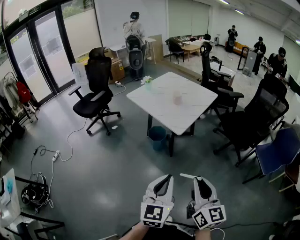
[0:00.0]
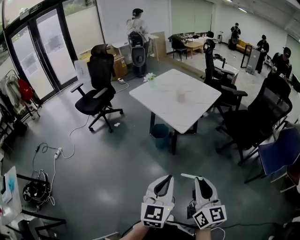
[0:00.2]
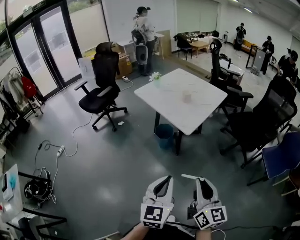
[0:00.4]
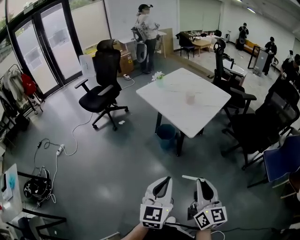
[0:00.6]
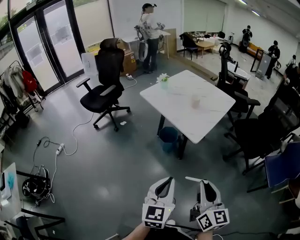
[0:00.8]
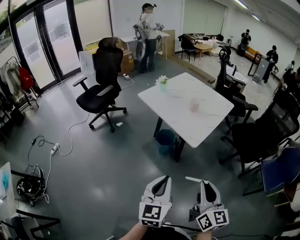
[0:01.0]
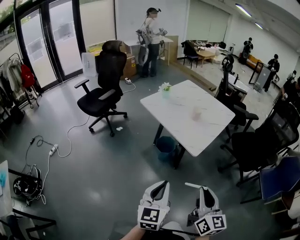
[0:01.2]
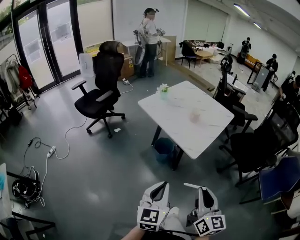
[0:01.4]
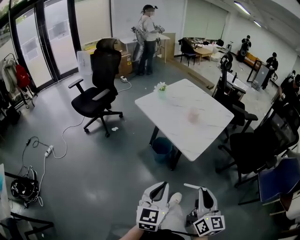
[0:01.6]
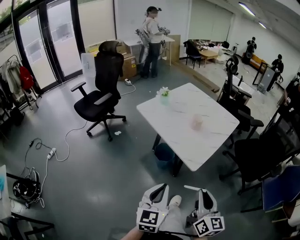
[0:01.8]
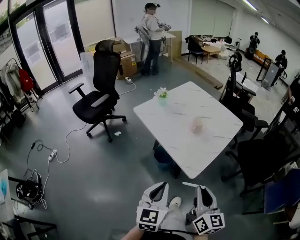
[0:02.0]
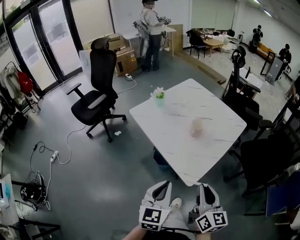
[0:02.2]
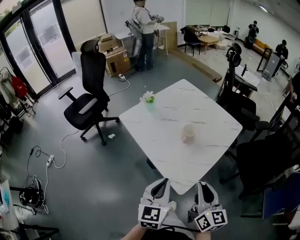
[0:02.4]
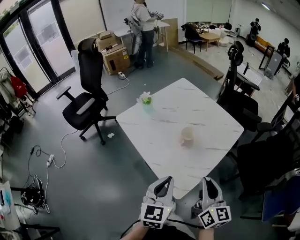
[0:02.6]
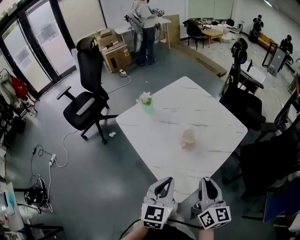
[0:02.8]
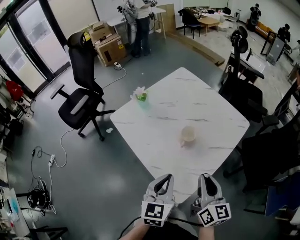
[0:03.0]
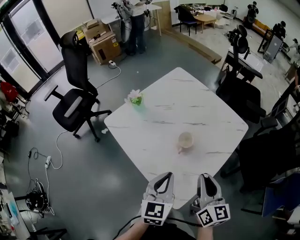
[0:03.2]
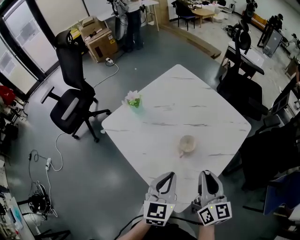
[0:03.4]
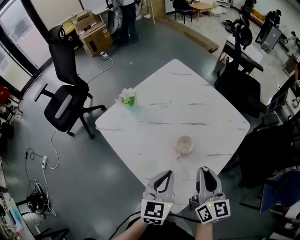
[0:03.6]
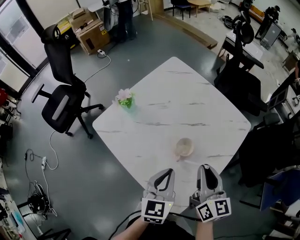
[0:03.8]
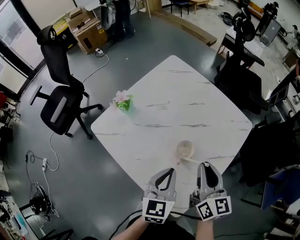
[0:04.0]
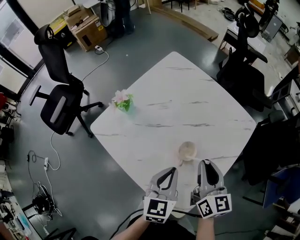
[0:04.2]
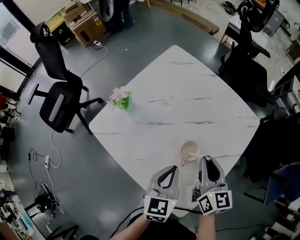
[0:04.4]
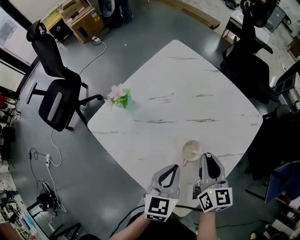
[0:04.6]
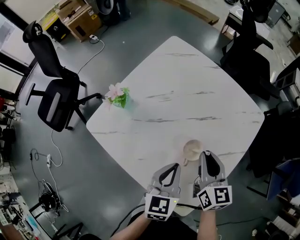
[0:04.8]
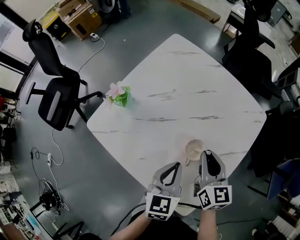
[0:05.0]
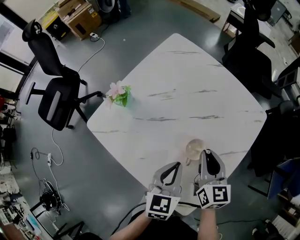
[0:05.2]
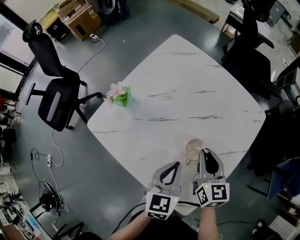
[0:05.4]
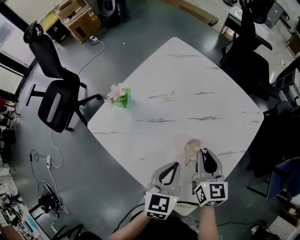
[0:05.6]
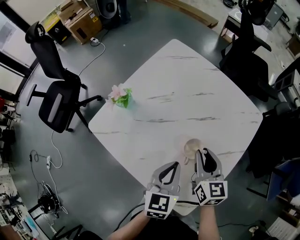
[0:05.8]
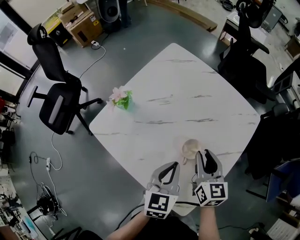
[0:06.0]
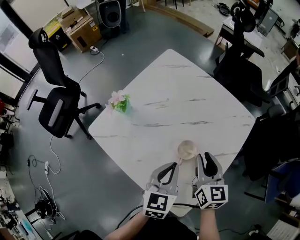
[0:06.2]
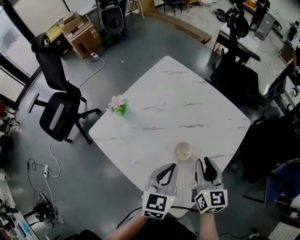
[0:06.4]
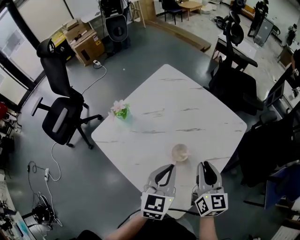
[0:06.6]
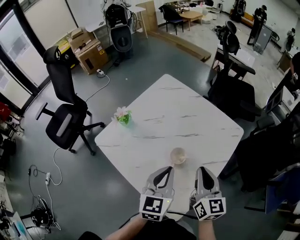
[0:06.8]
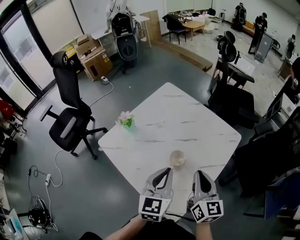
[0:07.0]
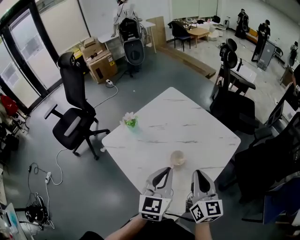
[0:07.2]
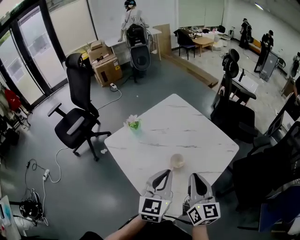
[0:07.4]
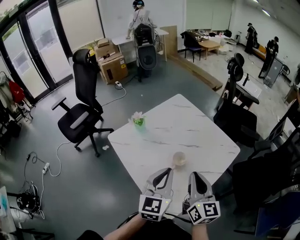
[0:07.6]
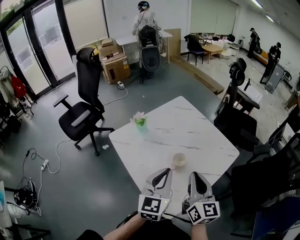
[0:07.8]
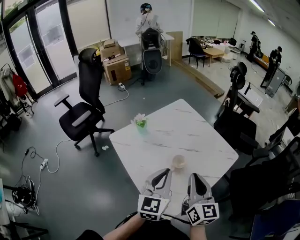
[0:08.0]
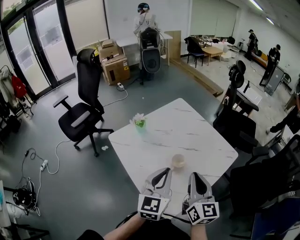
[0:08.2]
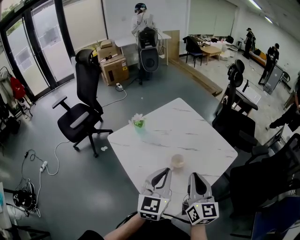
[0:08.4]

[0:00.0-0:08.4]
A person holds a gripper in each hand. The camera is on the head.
0:00.0 to 0:01.4: The two grippers go roughly 20 cm forward and to the left.
0:01.4 to 0:02.8: Both grippers move forward, approximately 40 cm.
0:02.8 to 0:04.2: The left gripper is displaced forward and downward by some 20 cm; the right gripper goes some 20 cm forward.
0:04.2 to 0:05.6: The right gripper shifts roughly 10 cm downward.
0:05.6 to 0:07.0: The left gripper heads upward, covering about 15 cm; the right gripper moves upward, backward and to the right, roughly 15 cm.
0:07.0 to 0:08.4: The two grippers go roughly 5 cm upward.

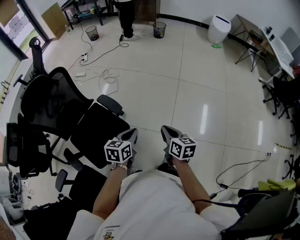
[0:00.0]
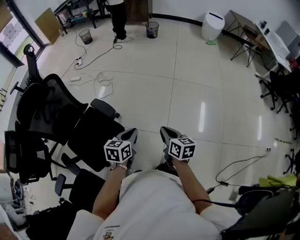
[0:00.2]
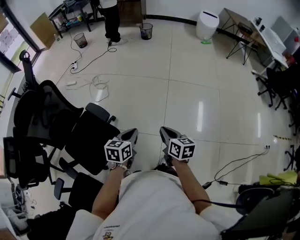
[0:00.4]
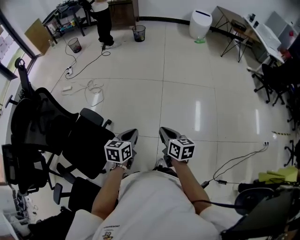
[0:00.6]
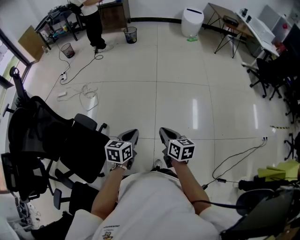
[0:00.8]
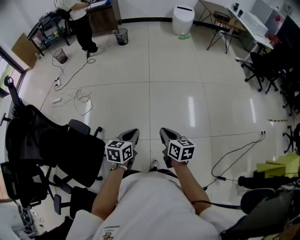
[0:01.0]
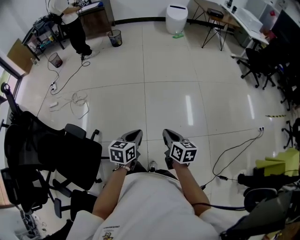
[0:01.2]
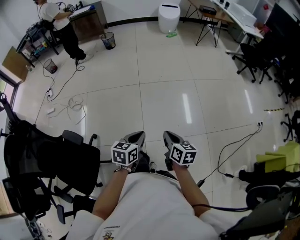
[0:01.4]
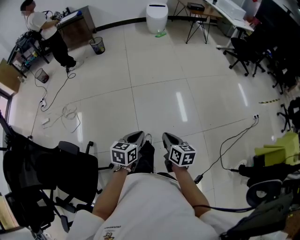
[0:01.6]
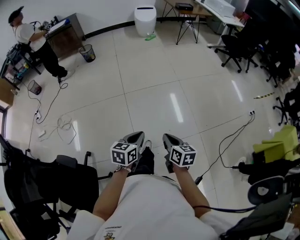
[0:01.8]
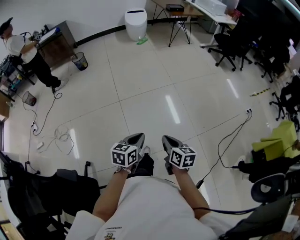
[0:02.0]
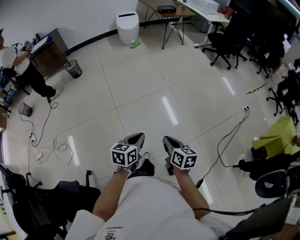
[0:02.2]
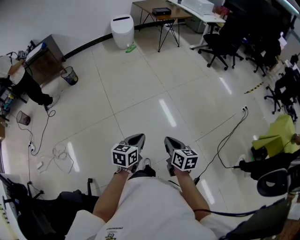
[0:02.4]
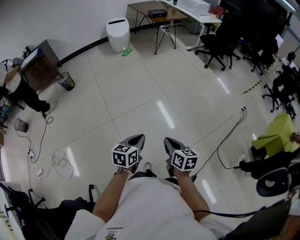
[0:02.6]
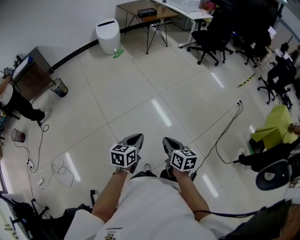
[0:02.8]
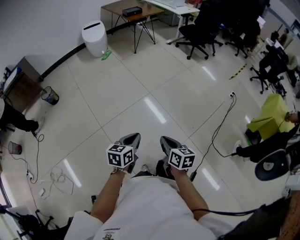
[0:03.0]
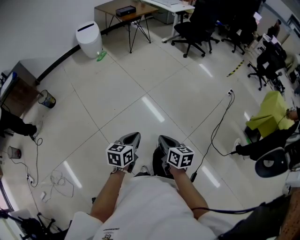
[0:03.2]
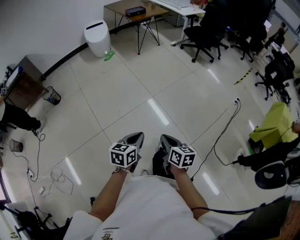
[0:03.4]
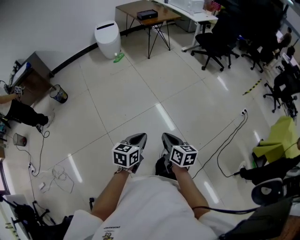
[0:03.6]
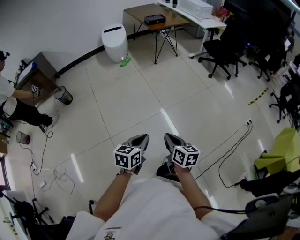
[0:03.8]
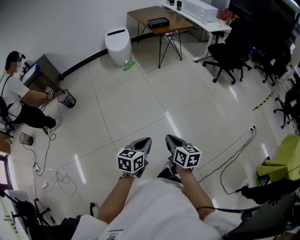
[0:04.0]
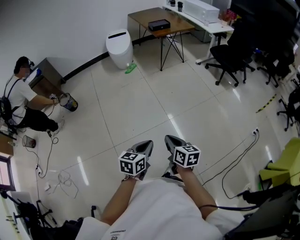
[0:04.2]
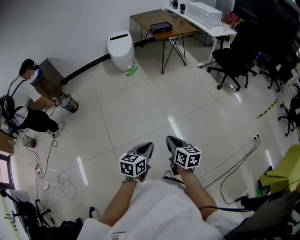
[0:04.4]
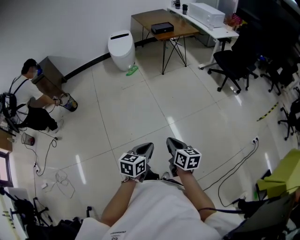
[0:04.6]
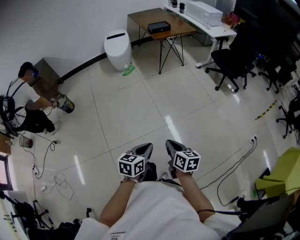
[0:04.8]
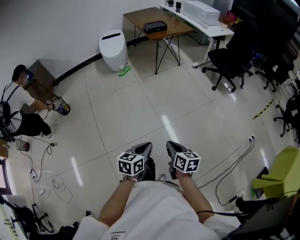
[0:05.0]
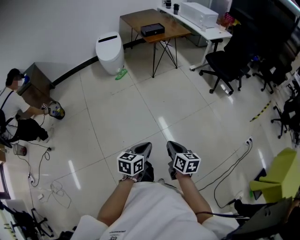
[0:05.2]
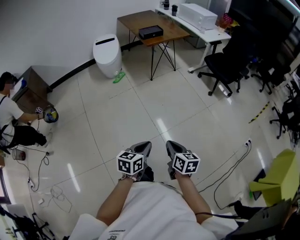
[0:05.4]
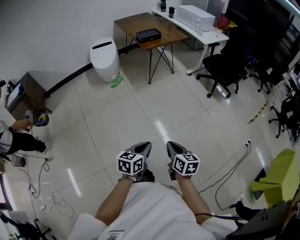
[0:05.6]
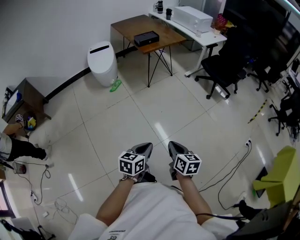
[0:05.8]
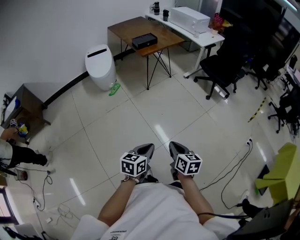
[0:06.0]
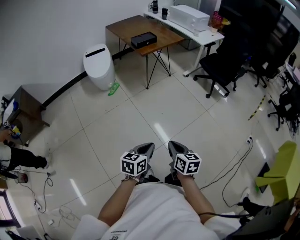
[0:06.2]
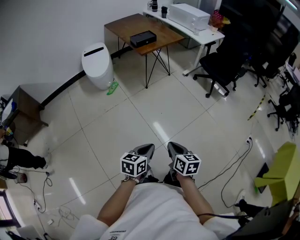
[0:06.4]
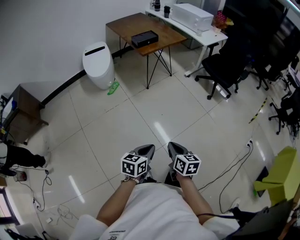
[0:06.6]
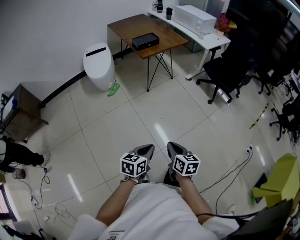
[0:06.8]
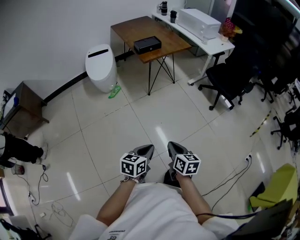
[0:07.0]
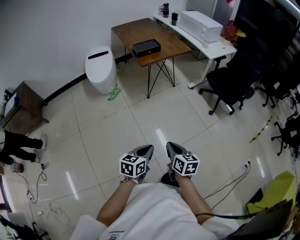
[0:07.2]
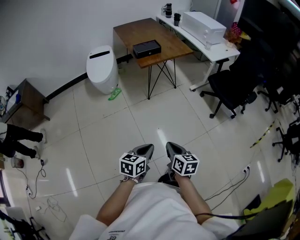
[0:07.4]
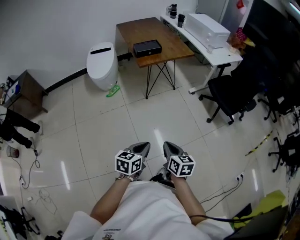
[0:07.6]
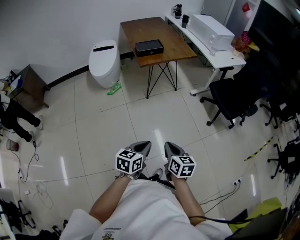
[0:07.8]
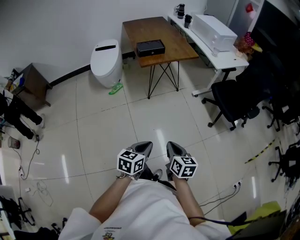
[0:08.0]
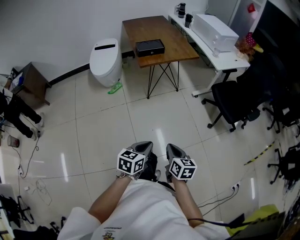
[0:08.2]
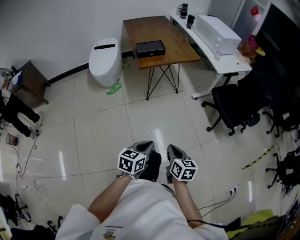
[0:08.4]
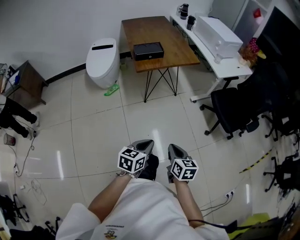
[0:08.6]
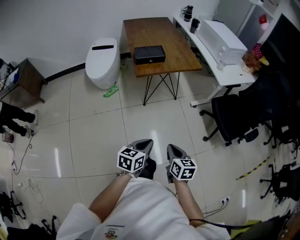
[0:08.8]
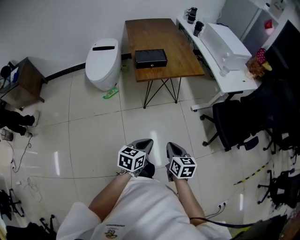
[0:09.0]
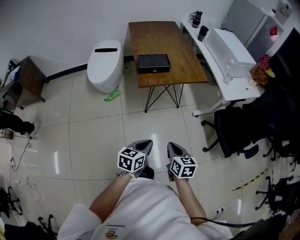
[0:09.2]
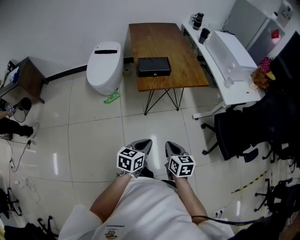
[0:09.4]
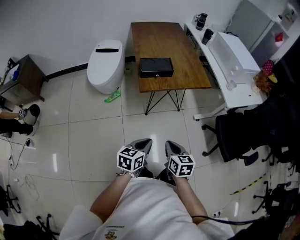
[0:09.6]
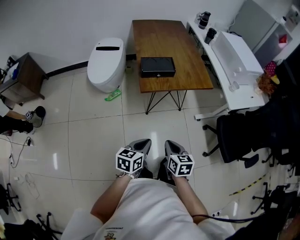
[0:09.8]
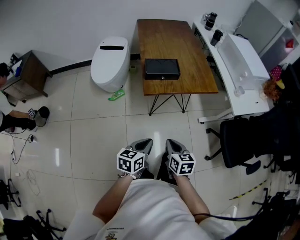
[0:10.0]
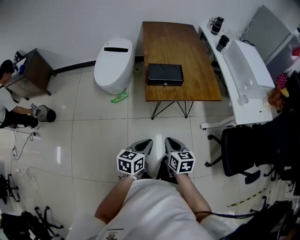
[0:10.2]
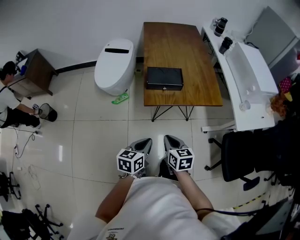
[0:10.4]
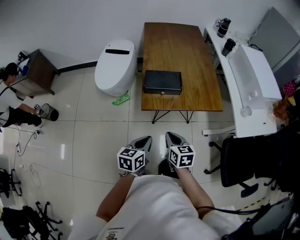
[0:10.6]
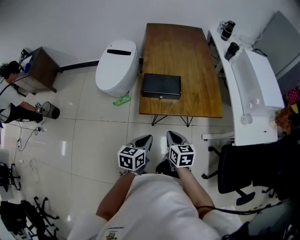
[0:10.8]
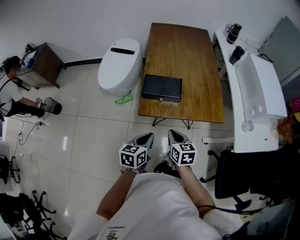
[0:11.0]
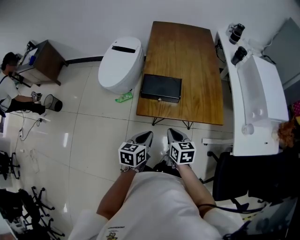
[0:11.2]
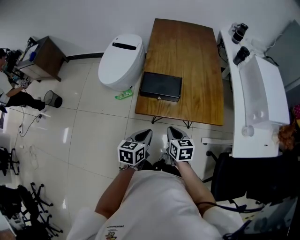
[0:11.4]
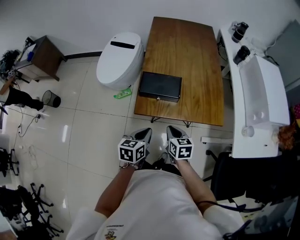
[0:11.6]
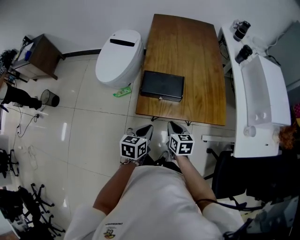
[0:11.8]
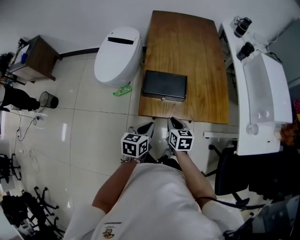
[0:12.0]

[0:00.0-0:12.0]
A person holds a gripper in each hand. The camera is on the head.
0:00.0 to 0:01.6: The left gripper moves approximately 40 cm, and changes its angle by about 30 degrees, while the right gripper ends up roughly 35 cm from where it was, and swivels some 30 degrees.
0:01.6 to 0:03.0: The left gripper shifts by some 35 cm, and turns by approximately 30 degrees; the right gripper changes place by about 30 cm, and rotates roughly 30 degrees.
0:03.0 to 0:04.4: The grippers both shift forward by approximately 35 cm.
0:04.4 to 0:06.0: The grippers both shift forward by about 25 cm.
0:06.0 to 0:07.6: Both grippers move forward and to the right, roughly 30 cm.
0:07.6 to 0:09.0: Both grippers travel together forward, about 25 cm.
0:09.0 to 0:10.4: Both grippers move forward, some 25 cm.
0:10.4 to 0:12.0: Both grippers travel together forward, about 20 cm.

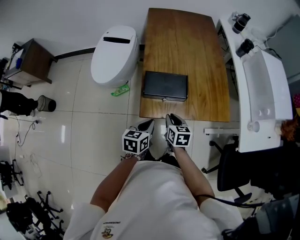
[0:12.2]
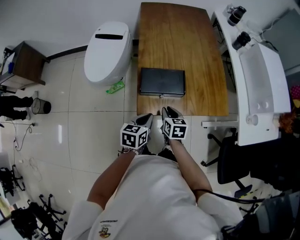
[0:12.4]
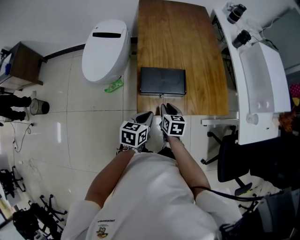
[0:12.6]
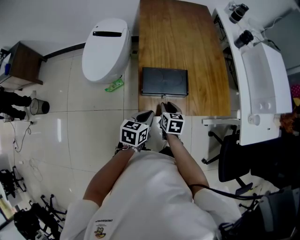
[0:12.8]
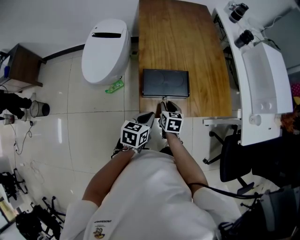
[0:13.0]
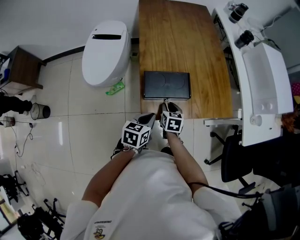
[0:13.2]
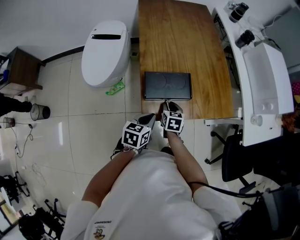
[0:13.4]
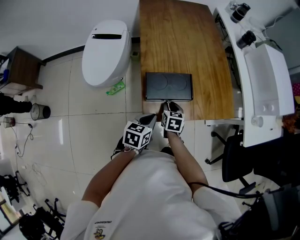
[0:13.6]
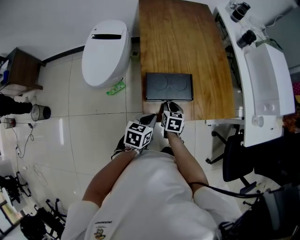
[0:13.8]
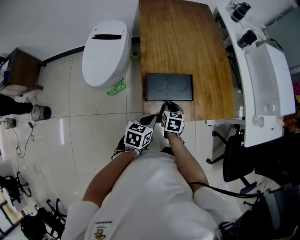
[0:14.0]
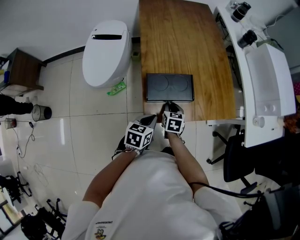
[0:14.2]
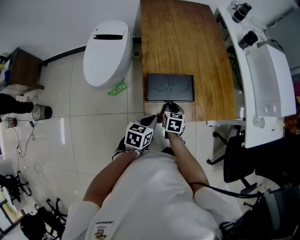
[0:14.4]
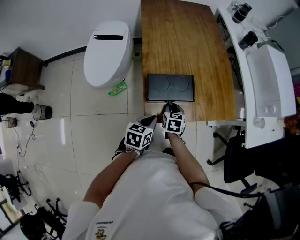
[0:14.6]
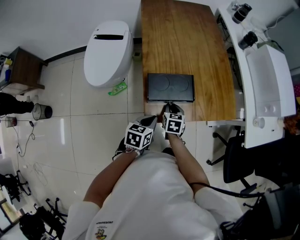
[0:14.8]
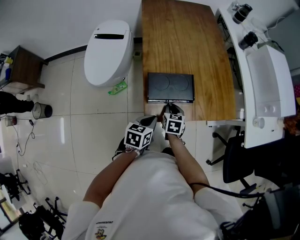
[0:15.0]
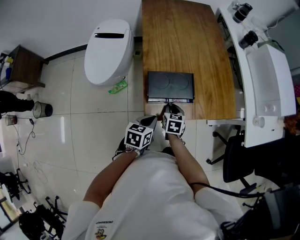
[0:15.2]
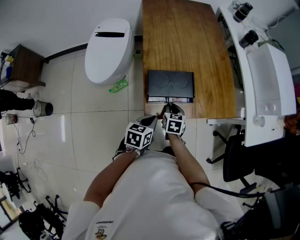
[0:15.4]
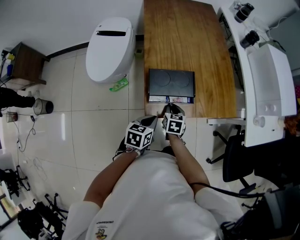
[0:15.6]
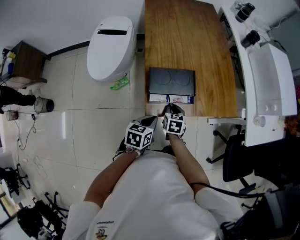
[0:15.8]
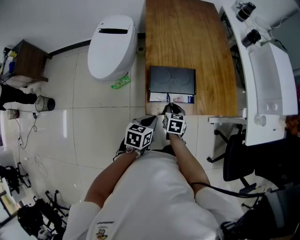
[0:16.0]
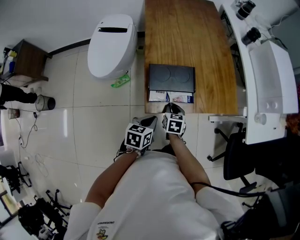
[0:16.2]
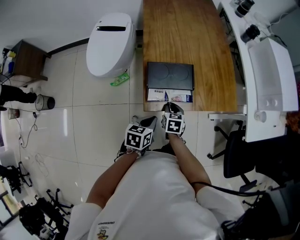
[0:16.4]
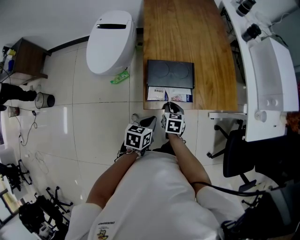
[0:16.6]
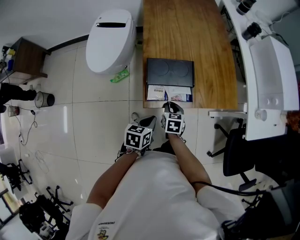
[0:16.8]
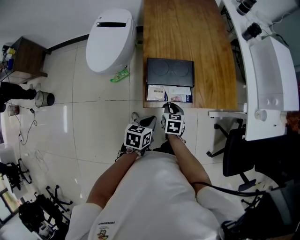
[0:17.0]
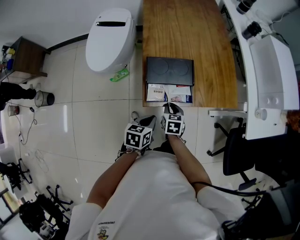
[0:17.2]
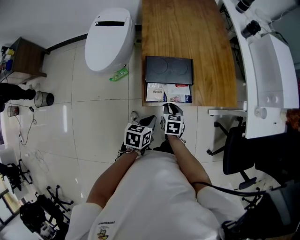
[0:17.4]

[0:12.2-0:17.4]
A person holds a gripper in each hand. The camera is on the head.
0:12.2 to 0:14.0: The left gripper travels forward by some 5 cm. Meanwhile the right gripper is displaced forward and downward by approximately 10 cm.
0:14.0 to 0:15.6: There are only small adjustments of the grippers.
0:15.6 to 0:17.4: The left gripper ends up roughly 5 cm from where it was; the right gripper goes approximately 5 cm backward.
